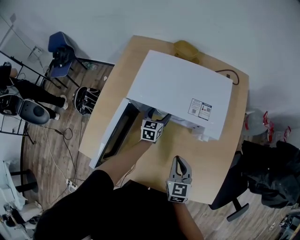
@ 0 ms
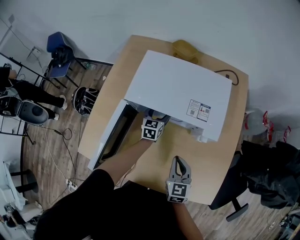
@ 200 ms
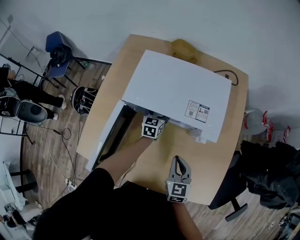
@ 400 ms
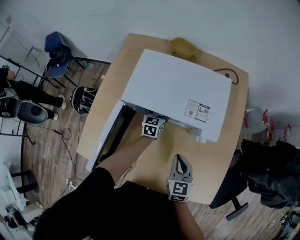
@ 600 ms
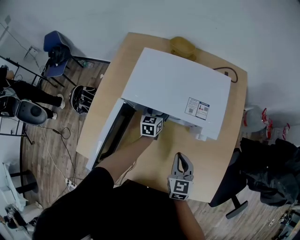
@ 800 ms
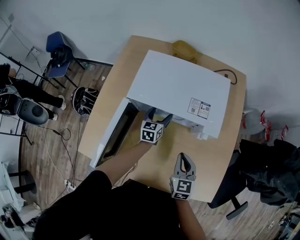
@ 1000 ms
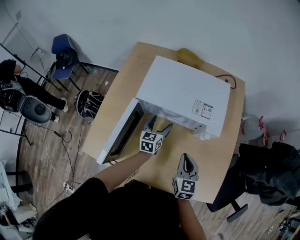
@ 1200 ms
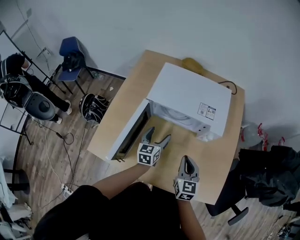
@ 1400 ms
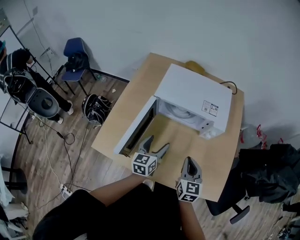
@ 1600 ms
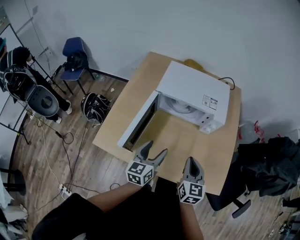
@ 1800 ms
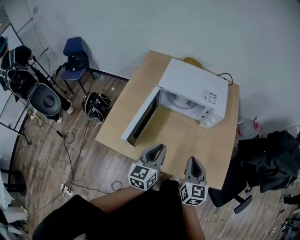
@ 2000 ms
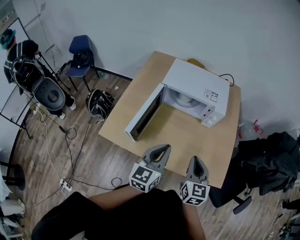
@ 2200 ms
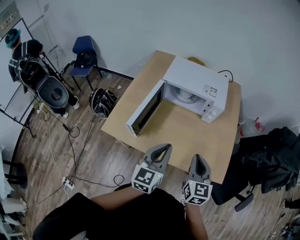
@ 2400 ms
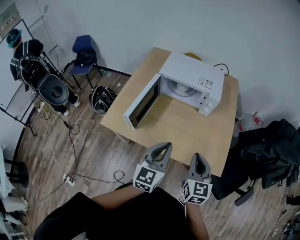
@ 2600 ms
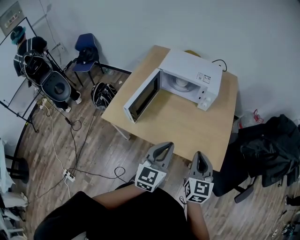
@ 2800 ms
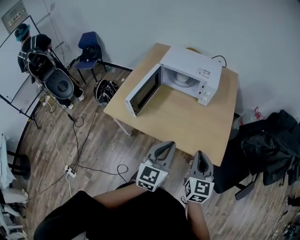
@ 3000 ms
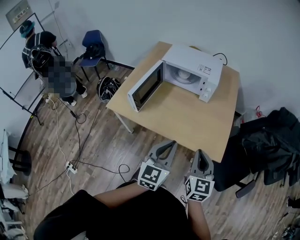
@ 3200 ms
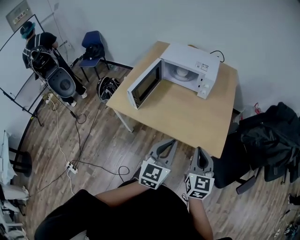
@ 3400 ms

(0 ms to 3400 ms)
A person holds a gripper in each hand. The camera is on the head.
0 ms - 1600 ms: The right gripper goes approximately 10 cm upward and backward. The left gripper shifts about 25 cm backward and upward.
1600 ms - 3400 ms: The left gripper heads backward, to the right and upward, covering some 40 cm, turns by roughly 20 degrees, and closes its fingers. Meanwhile the right gripper travels backward and to the right by approximately 30 cm.

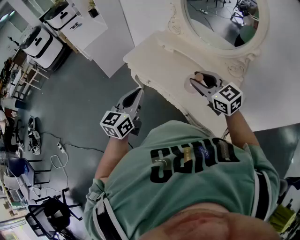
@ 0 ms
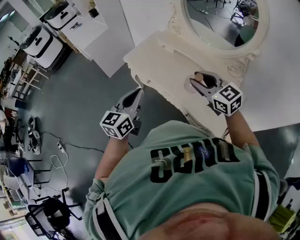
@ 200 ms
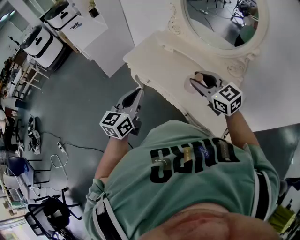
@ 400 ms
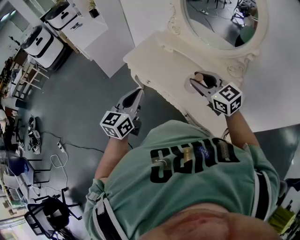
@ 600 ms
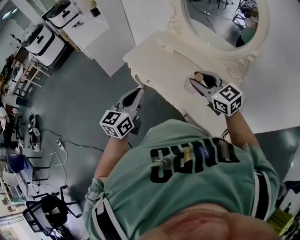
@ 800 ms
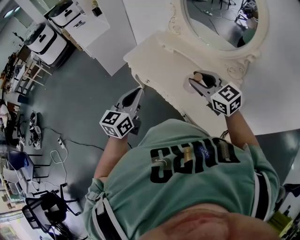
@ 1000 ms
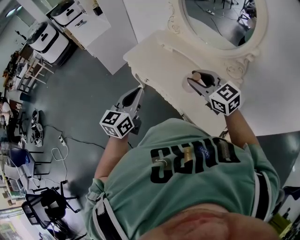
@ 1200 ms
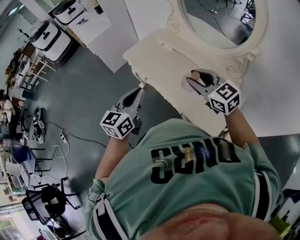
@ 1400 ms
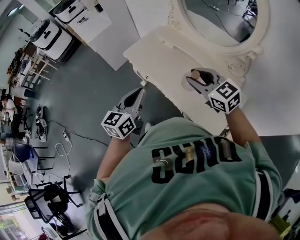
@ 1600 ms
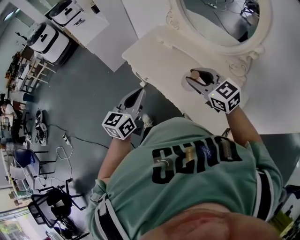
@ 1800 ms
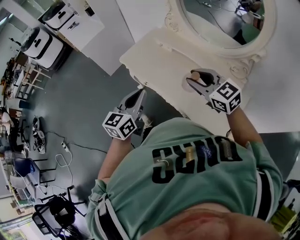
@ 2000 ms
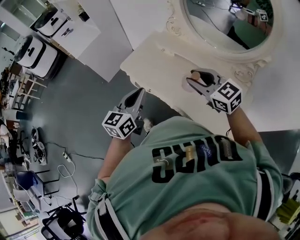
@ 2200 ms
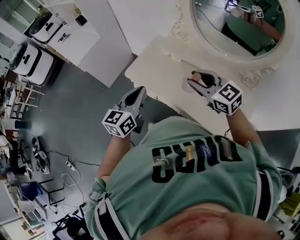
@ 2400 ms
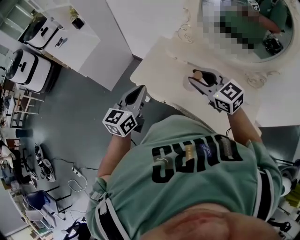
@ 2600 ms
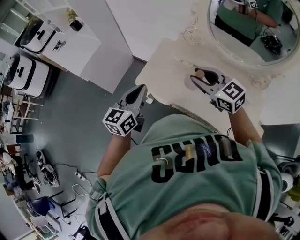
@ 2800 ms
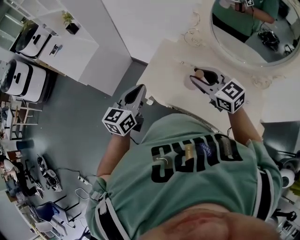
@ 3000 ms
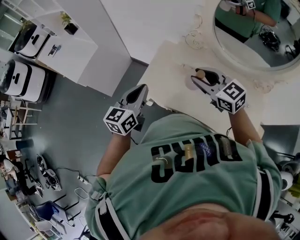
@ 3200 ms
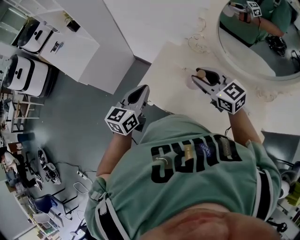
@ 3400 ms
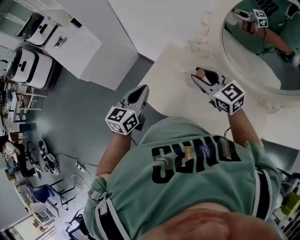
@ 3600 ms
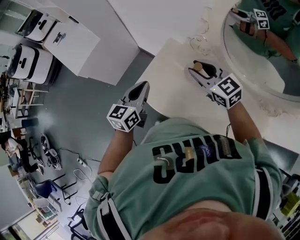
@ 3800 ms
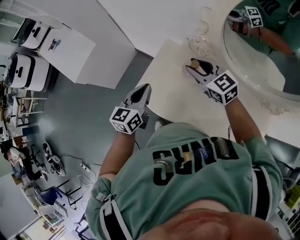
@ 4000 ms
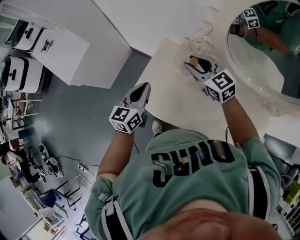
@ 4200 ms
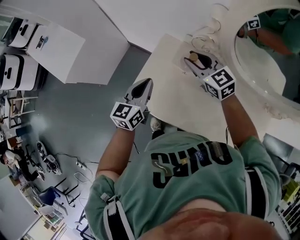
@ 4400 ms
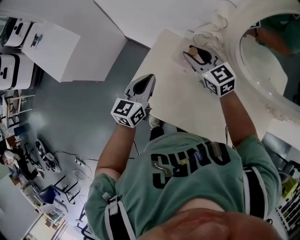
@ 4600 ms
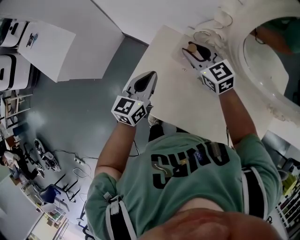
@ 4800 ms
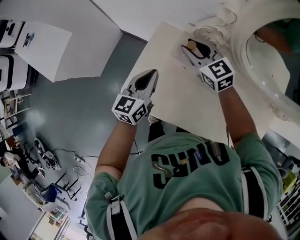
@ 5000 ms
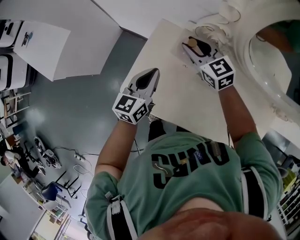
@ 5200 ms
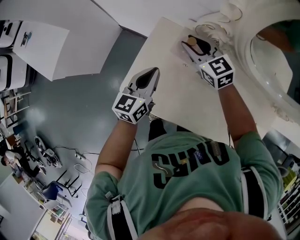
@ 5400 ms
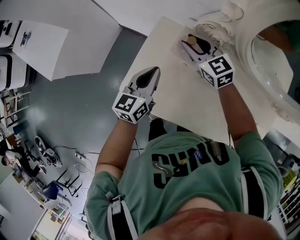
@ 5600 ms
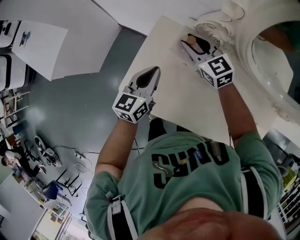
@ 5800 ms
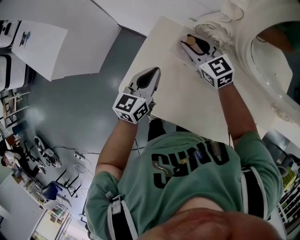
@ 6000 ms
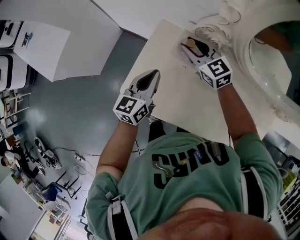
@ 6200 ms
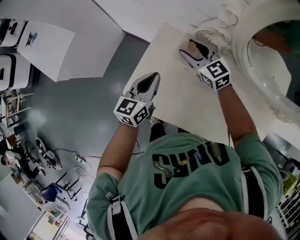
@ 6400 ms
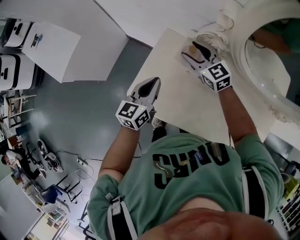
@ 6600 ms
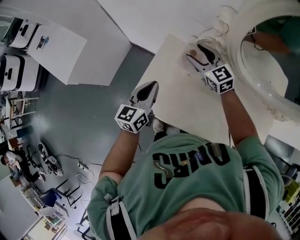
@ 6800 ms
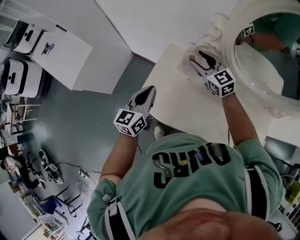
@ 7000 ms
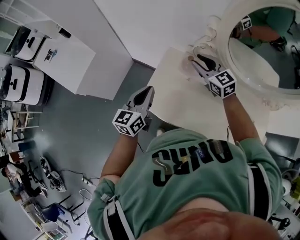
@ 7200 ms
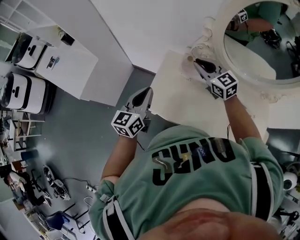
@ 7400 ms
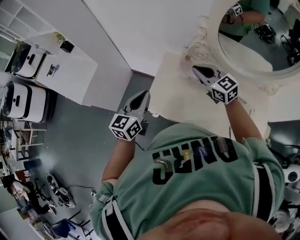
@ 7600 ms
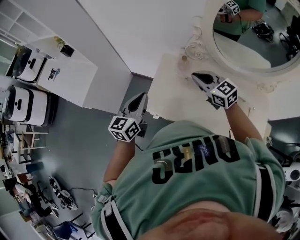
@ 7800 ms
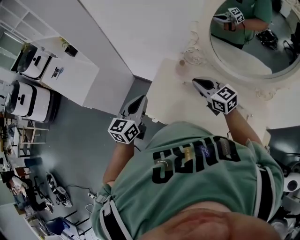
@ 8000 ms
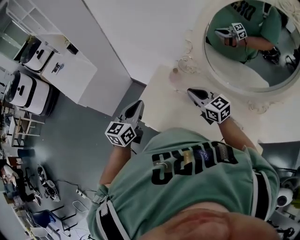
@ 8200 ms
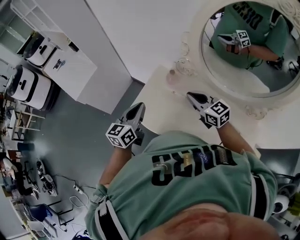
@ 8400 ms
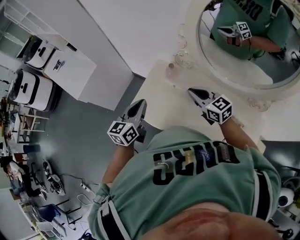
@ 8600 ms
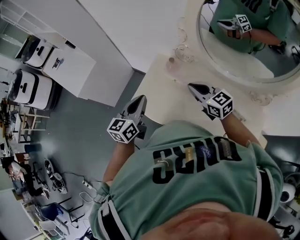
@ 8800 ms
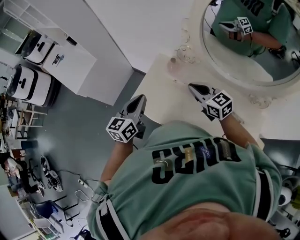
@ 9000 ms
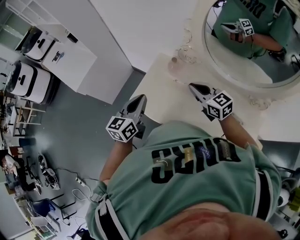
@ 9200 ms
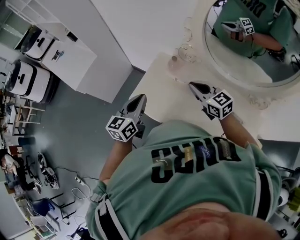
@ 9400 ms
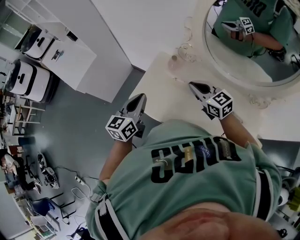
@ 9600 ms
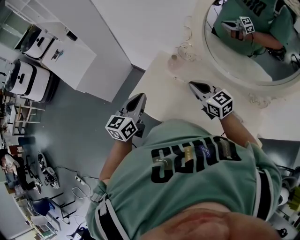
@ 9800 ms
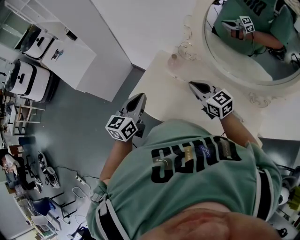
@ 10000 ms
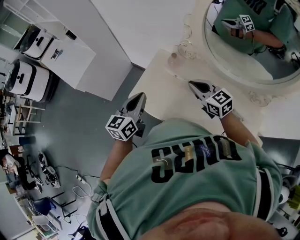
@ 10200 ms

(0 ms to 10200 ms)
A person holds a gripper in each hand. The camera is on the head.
0 ms - 1400 ms: Both grippers travel together to the right, about 5 cm.
1400 ms - 3000 ms: Both grippers travel together forward and to the left, some 40 cm. The left gripper turns by approximately 20 degrees.
3000 ms - 4400 ms: The left gripper goes about 25 cm forward, downward and to the right, while the right gripper is displaced forward and downward by some 30 cm.
4400 ms - 5800 ms: The right gripper heads downward and forward, covering roughly 10 cm; the left gripper shifts roughly 5 cm downward.
5800 ms - 7200 ms: The left gripper moves upward, to the left and backward, about 20 cm. Meanwhile the right gripper shifts approximately 15 cm upward and backward, and opens and closes again.
7200 ms - 8800 ms: The left gripper heads backward and to the right, covering some 10 cm; the right gripper moves backward and to the right, some 15 cm, and closes.
8800 ms - 10200 ms: The grippers stay close to where they were, moving slightly.

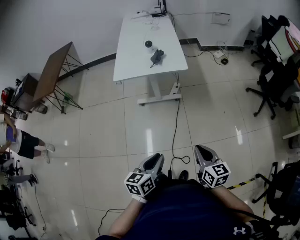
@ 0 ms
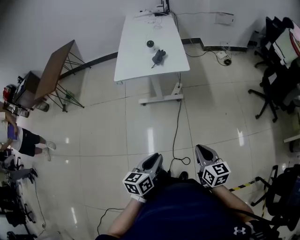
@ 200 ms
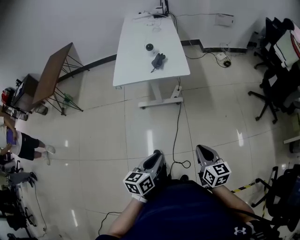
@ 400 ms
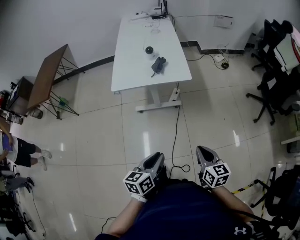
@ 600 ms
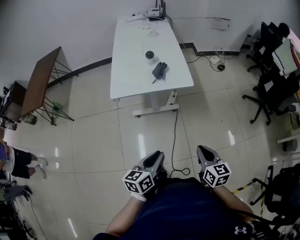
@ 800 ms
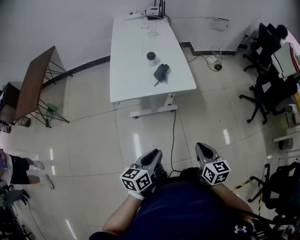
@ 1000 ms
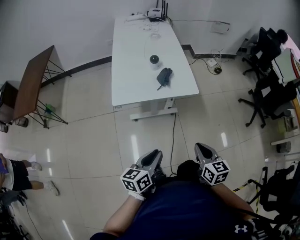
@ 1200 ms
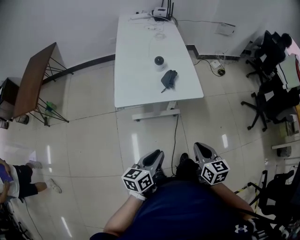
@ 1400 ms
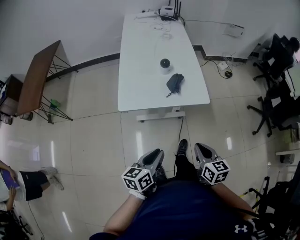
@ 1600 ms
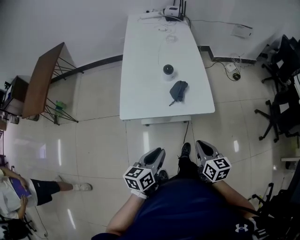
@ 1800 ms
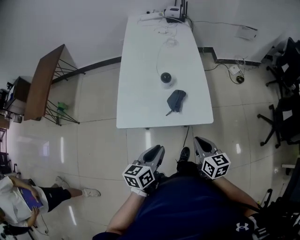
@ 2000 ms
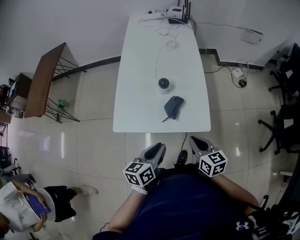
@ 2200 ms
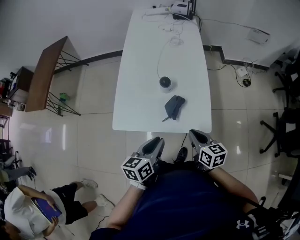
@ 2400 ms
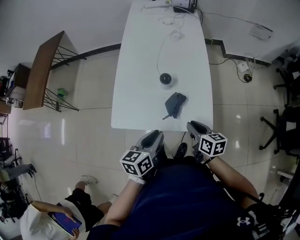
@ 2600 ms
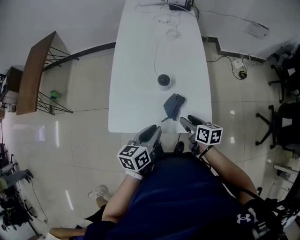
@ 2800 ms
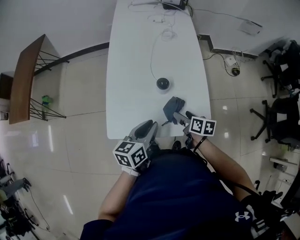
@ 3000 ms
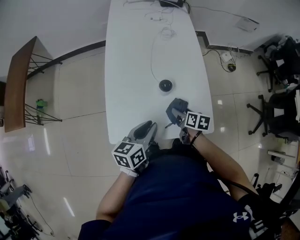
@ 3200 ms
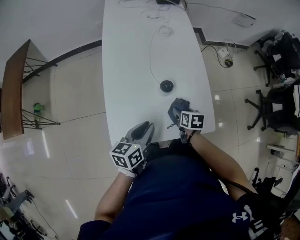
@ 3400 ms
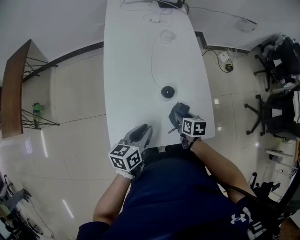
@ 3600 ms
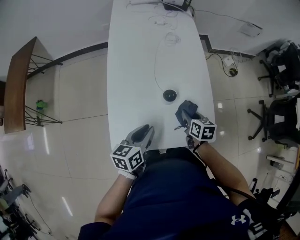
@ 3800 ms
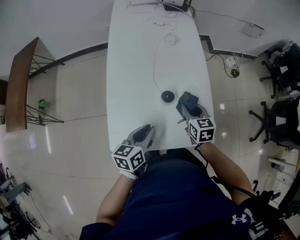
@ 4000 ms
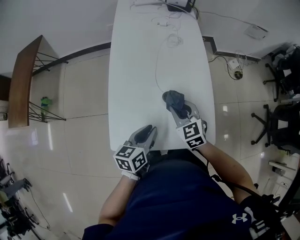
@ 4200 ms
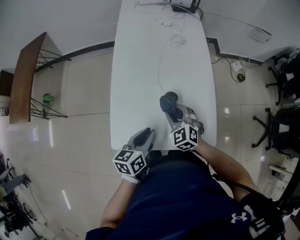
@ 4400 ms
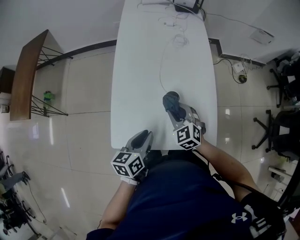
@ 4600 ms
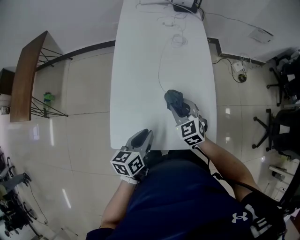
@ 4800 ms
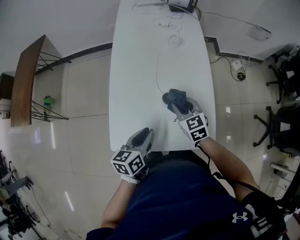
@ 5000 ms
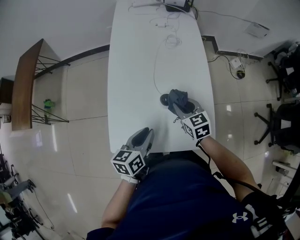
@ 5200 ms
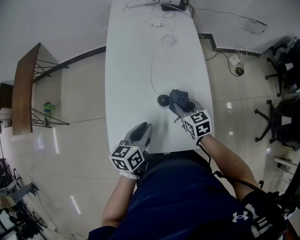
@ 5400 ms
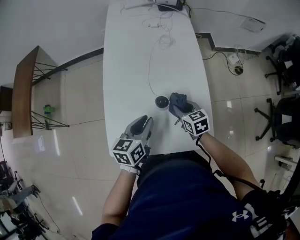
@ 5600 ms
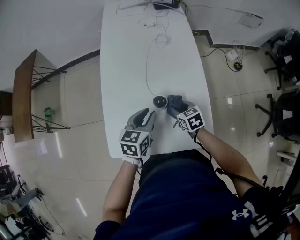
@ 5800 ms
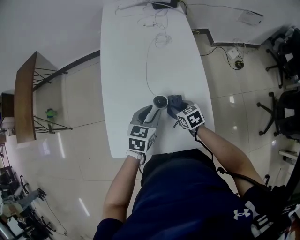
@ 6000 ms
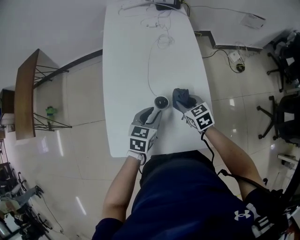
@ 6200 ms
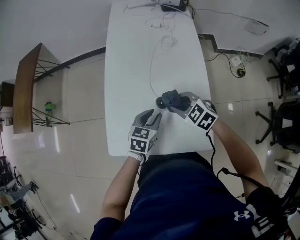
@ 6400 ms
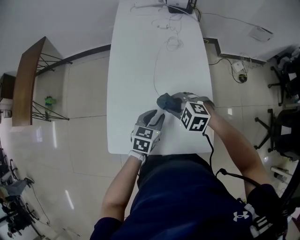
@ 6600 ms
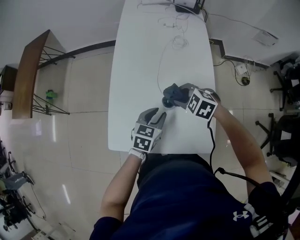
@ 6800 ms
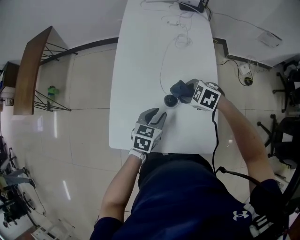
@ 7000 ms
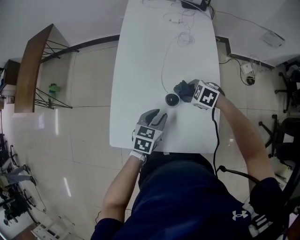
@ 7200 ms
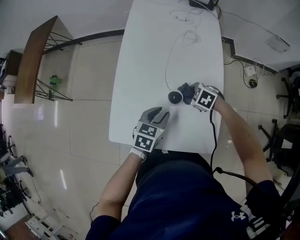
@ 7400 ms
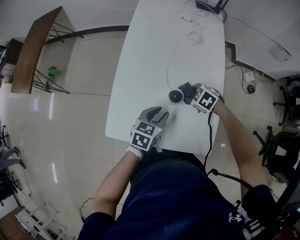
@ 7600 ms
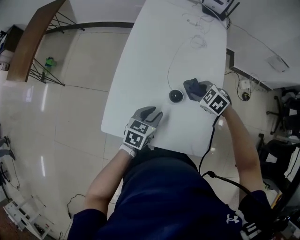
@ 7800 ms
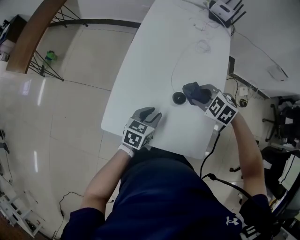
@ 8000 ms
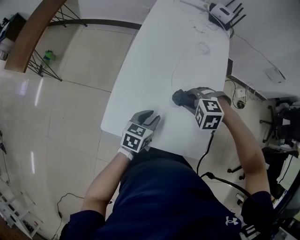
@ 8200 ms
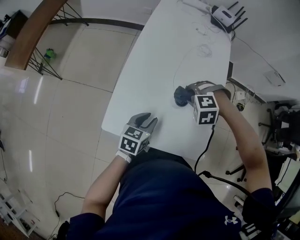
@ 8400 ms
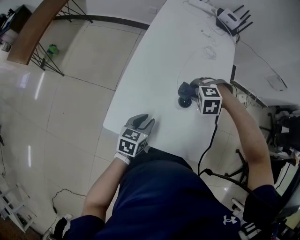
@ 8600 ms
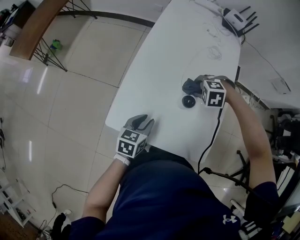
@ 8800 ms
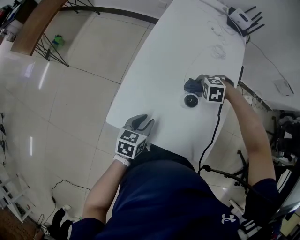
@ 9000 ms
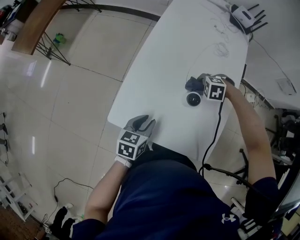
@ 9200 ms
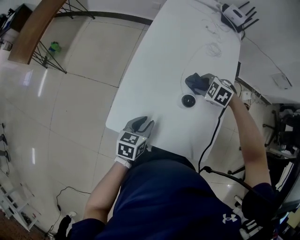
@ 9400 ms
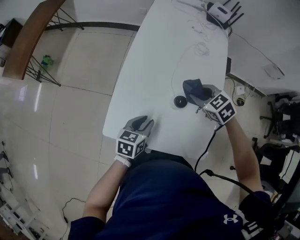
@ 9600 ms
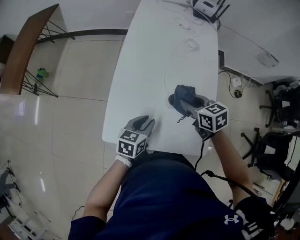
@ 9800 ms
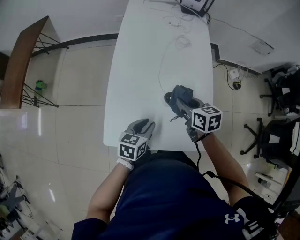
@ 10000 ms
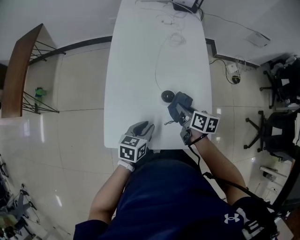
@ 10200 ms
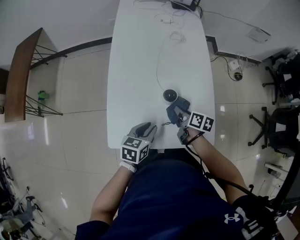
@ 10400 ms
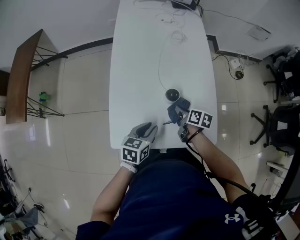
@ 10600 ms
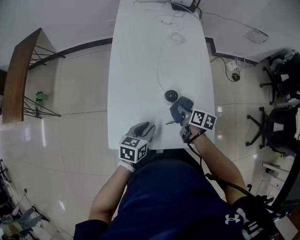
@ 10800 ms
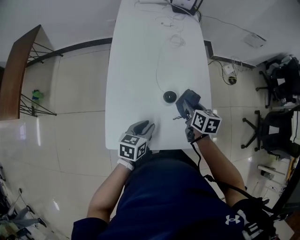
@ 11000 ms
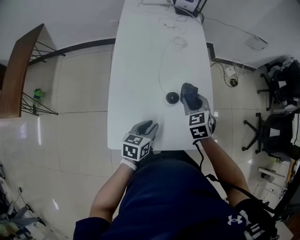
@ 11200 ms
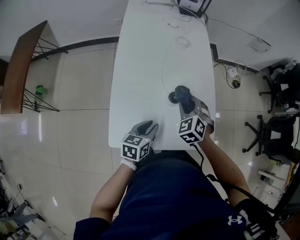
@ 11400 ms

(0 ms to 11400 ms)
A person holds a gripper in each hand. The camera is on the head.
0 ms - 1400 ms: The two grippers go some 30 cm forward and to the left.
1400 ms - 2800 ms: Both grippers move forward, approximately 35 cm. The right gripper rotates approximately 30 degrees, and opens.
2800 ms - 4200 ms: The right gripper heads forward, to the left and upward, covering roughly 15 cm, twists about 50 degrees counterclockwise, seen from behind, and closes, while the left gripper heads forward, covering about 10 cm.
4200 ms - 5600 ms: The left gripper heads forward, covering roughly 5 cm. Meanwhile the right gripper moves downward and to the right, approximately 10 cm, and rotates about 30 degrees.
5600 ms - 7200 ms: The left gripper moves downward, some 5 cm, while the right gripper moves up and down over approximately 15 cm, changing direction 2 times, and turns by approximately 60 degrees.
7200 ms - 8600 ms: The right gripper ends up approximately 10 cm from where it was, and twists approximately 40 degrees counterclockwise, seen from behind. The left gripper shifts by about 10 cm.
8600 ms - 10000 ms: The right gripper goes downward and returns, roughly 10 cm each way, and rotates around the line of its fingers by about 100 degrees, clockwise from behind.
10000 ms - 11400 ms: The right gripper travels downward and back again, about 15 cm each way, and twists some 50 degrees counterclockwise, seen from behind.
